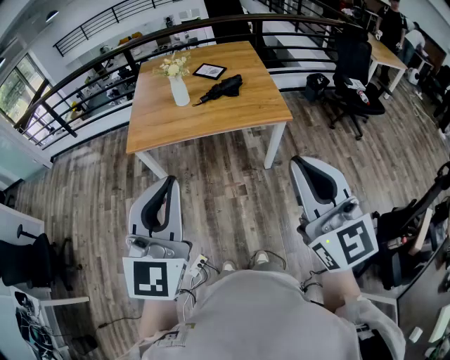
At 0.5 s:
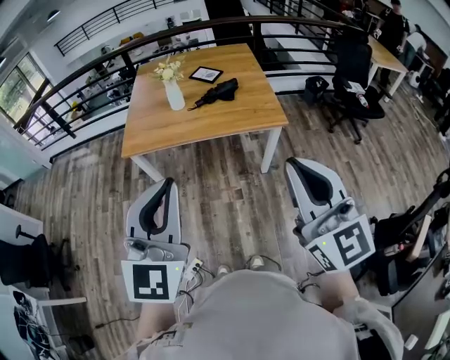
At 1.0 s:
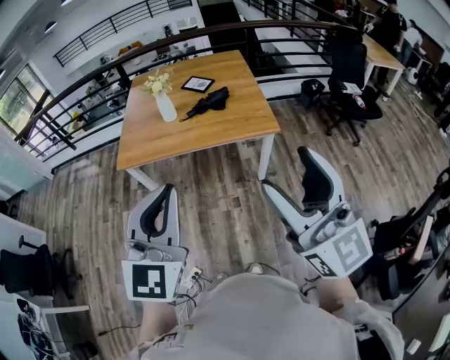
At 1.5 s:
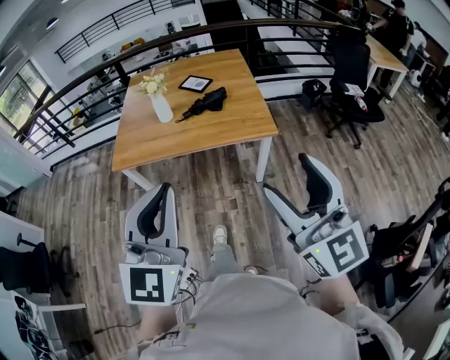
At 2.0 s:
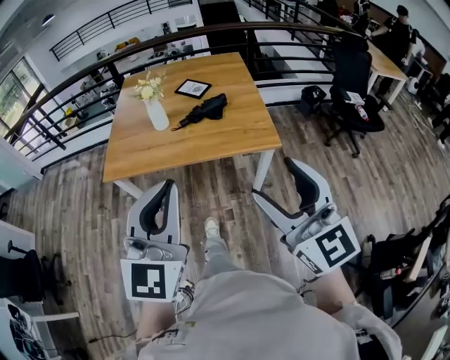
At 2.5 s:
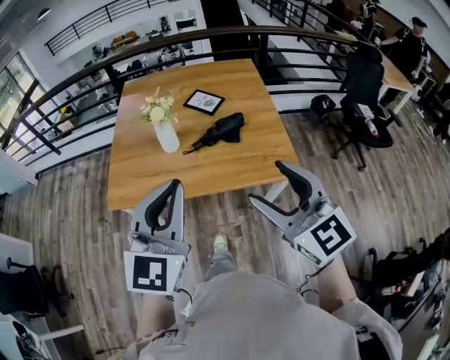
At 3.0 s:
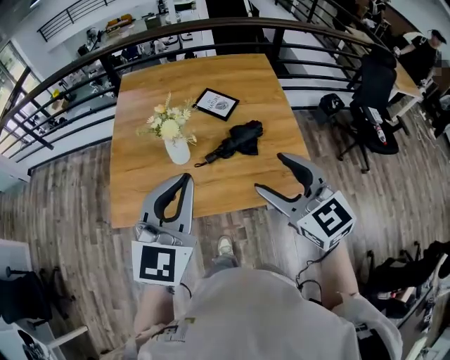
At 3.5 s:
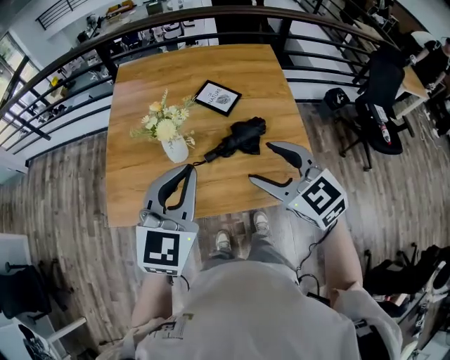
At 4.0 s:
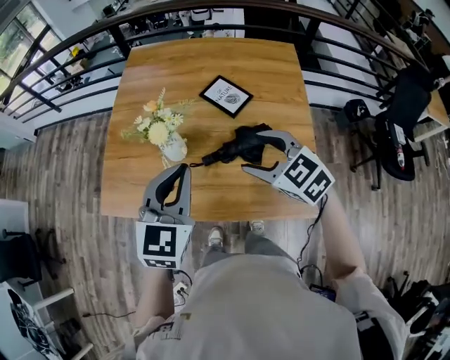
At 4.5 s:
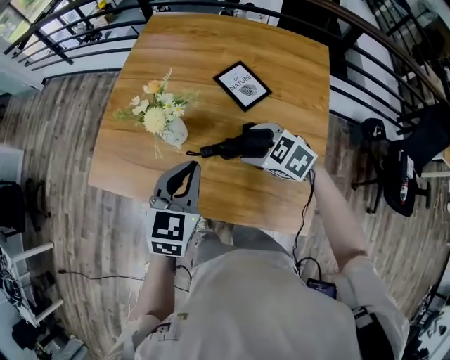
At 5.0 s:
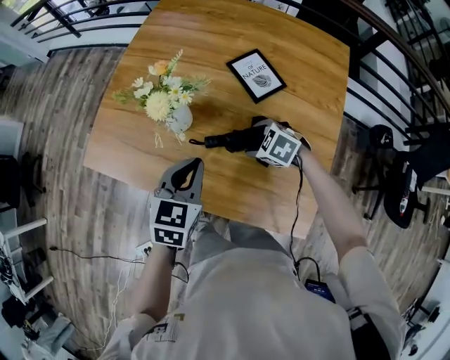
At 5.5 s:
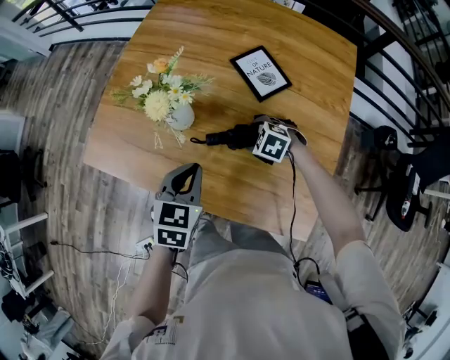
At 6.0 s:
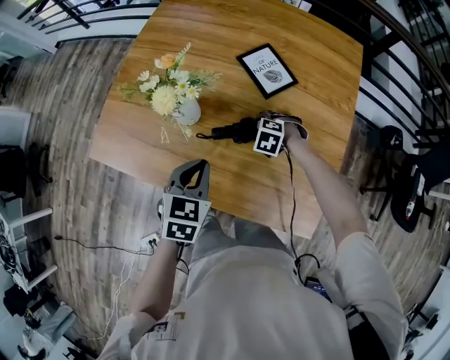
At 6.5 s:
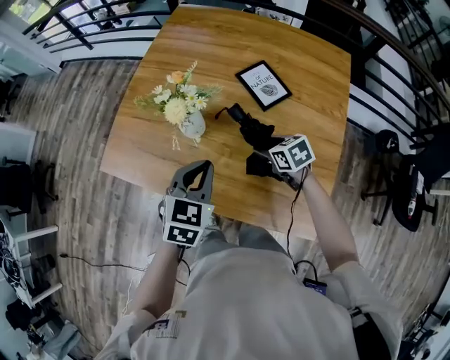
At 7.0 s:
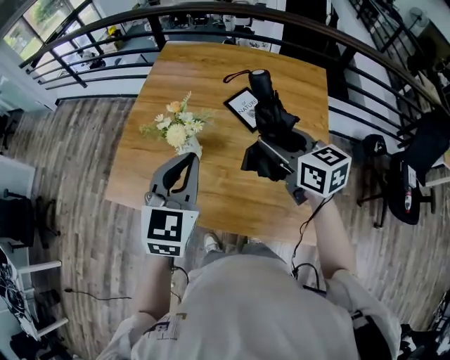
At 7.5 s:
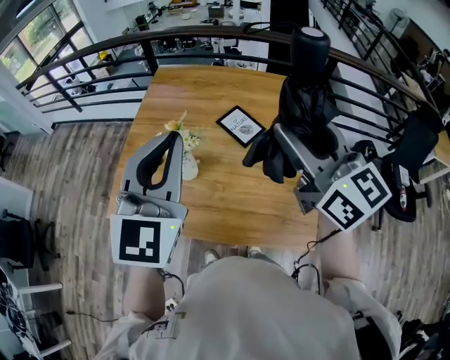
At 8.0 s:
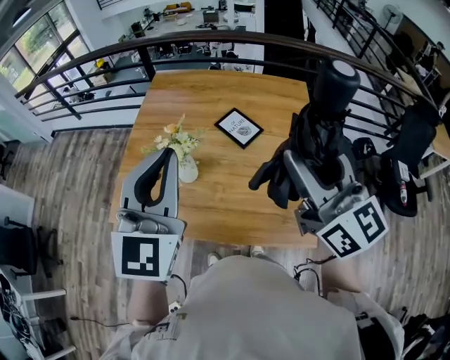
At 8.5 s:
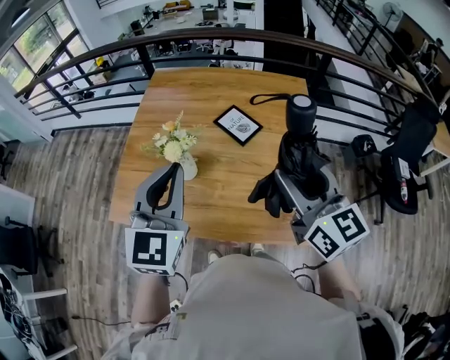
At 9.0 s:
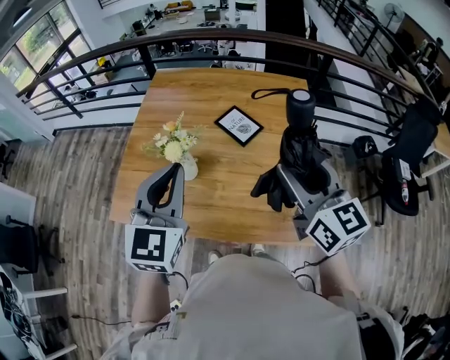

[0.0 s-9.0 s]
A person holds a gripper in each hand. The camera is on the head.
0.0 to 2.0 s: The left gripper shifts about 20 cm forward and to the right, while the right gripper moves forward, to the right and downward, approximately 20 cm, and opens up.
2.0 to 4.5 s: The two grippers travel together, roughly 60 cm. The left gripper tips its fingers downward by approximately 30 degrees; the right gripper points its fingers approximately 50 degrees further downward.
4.5 to 7.0 s: The left gripper is displaced upward by roughly 10 cm. Meanwhile the right gripper goes some 15 cm upward, and points its fingers some 30 degrees further upward.
7.0 to 9.0 s: The right gripper heads upward and backward, covering about 15 cm, and swivels some 30 degrees, while the left gripper travels upward by roughly 10 cm.

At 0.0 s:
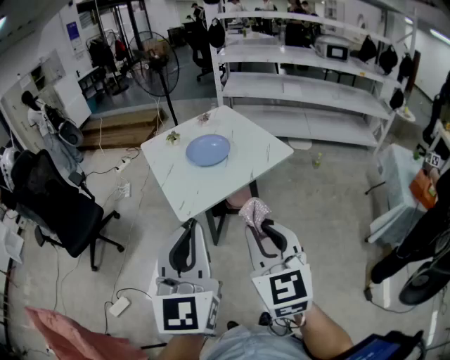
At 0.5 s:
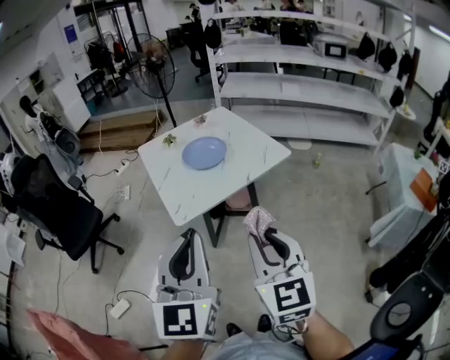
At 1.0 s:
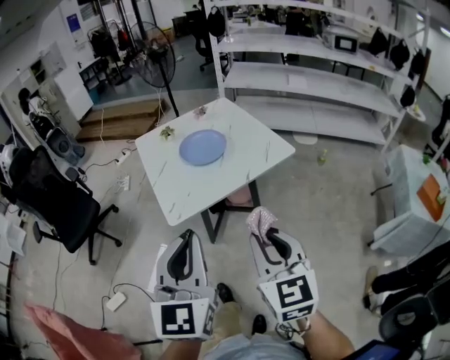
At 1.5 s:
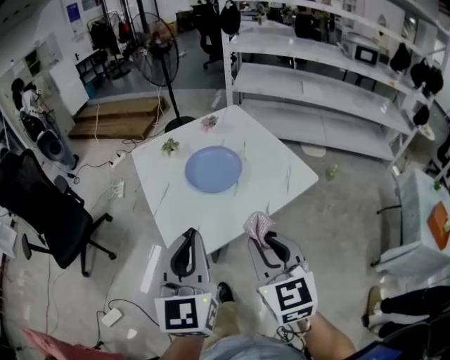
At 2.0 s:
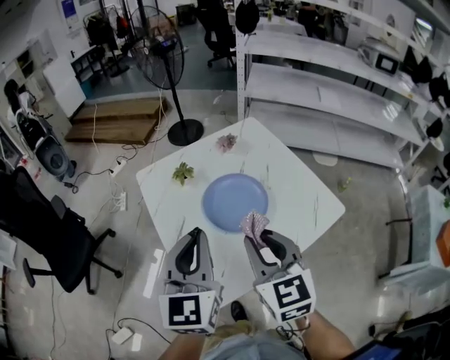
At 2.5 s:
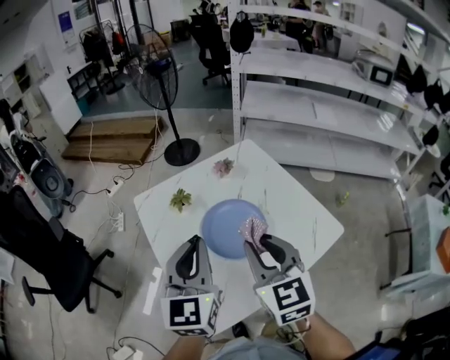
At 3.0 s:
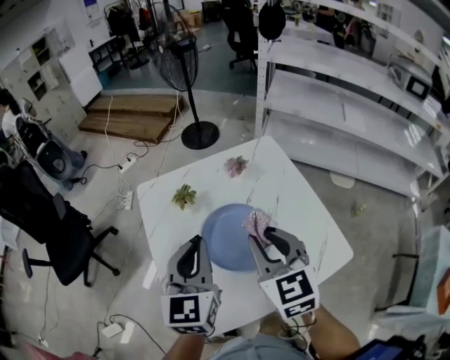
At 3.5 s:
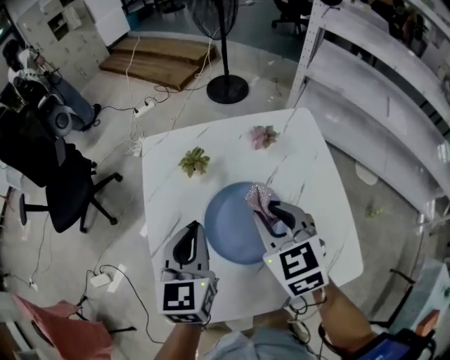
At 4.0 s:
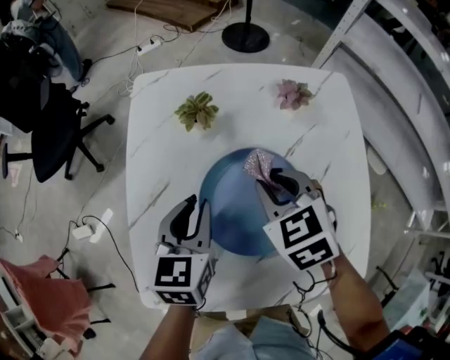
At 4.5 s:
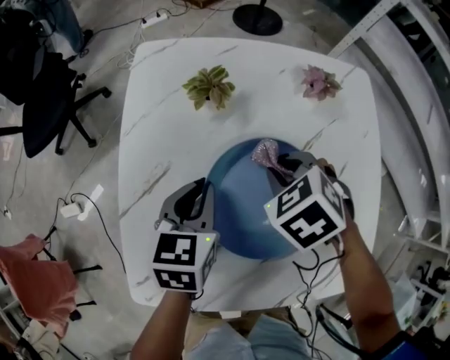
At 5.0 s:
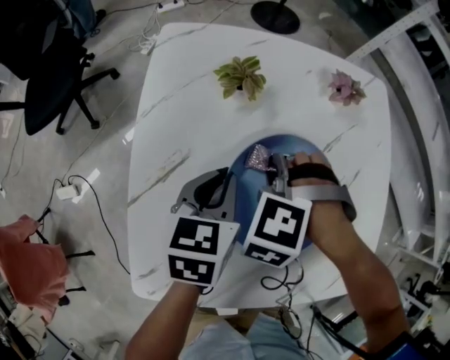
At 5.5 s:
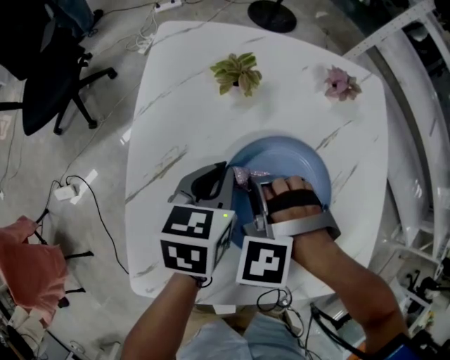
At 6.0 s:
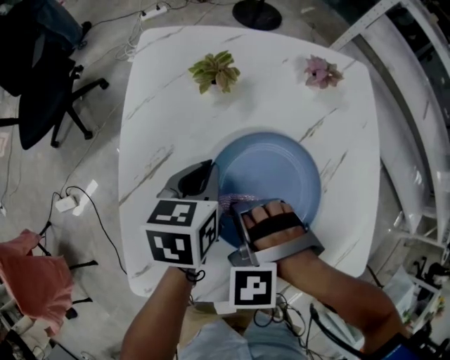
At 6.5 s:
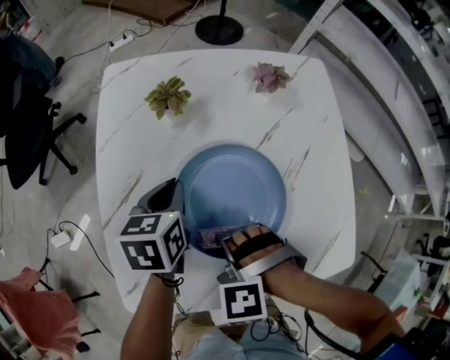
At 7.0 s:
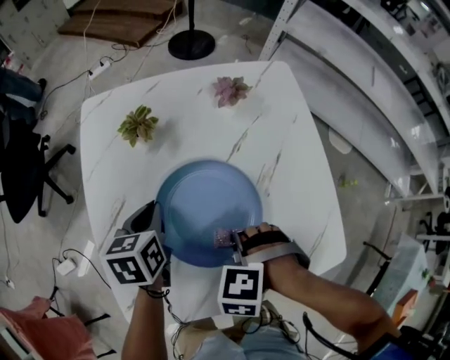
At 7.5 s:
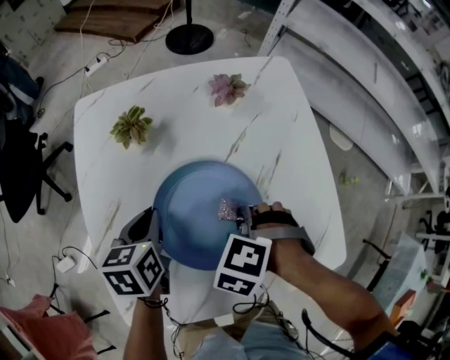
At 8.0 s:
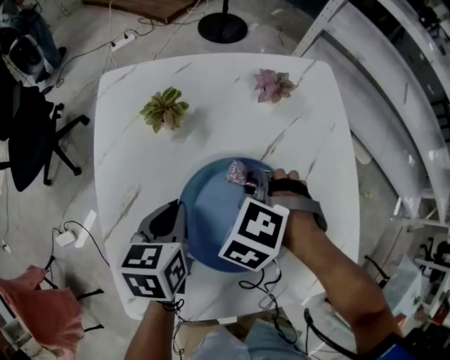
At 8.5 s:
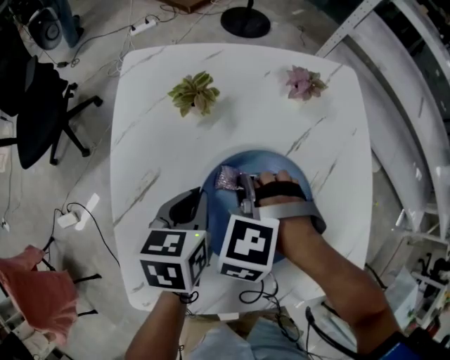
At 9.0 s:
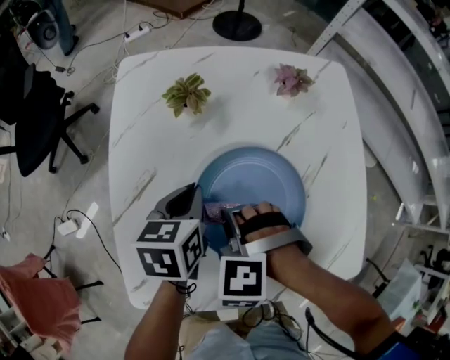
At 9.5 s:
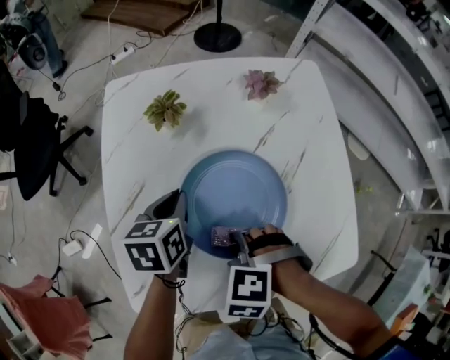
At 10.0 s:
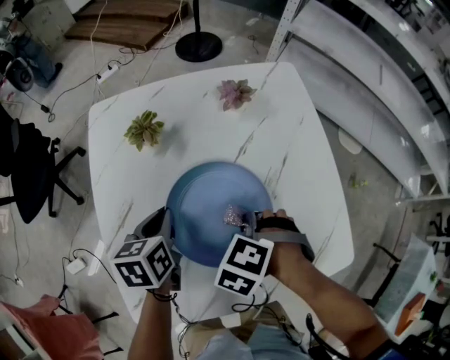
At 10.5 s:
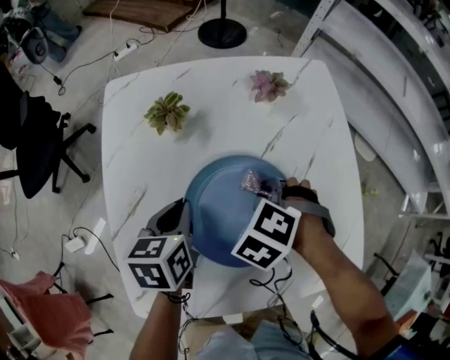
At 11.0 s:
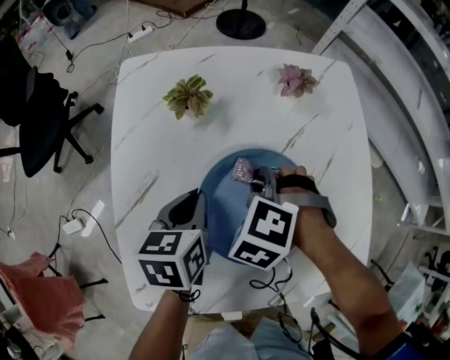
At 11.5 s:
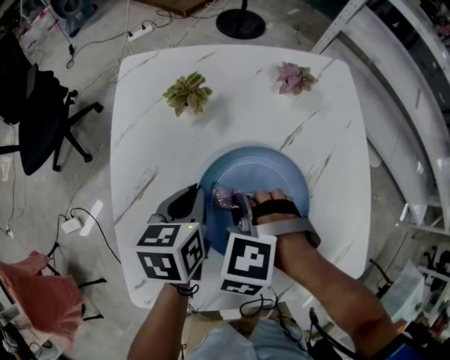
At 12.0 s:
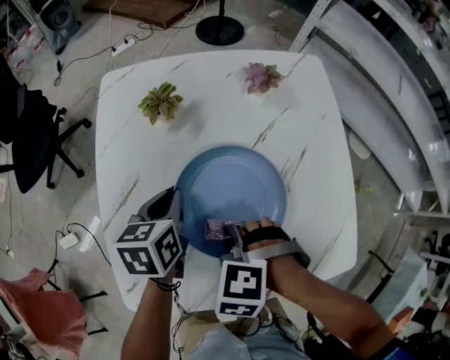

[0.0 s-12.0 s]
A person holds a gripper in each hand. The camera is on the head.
0.0 to 2.0 s: The pair of grippers is taken forward, roughly 40 cm.
2.0 to 4.0 s: The right gripper shifts by about 30 cm, and points its fingers approximately 30 degrees further downward. Meanwhile the left gripper shifts about 25 cm downward, and tilts its fingers approximately 30 degrees downward.
4.0 to 6.0 s: The right gripper shifts approximately 15 cm backward, to the left and downward, and rolls counterclockwise, seen from behind, by approximately 60 degrees, while the left gripper moves downward, about 5 cm.
6.0 to 8.0 s: The right gripper ends up some 15 cm from where it was, and changes its angle by approximately 30 degrees.
10.0 to 12.0 s: The right gripper moves about 10 cm, and changes its angle by about 20 degrees.

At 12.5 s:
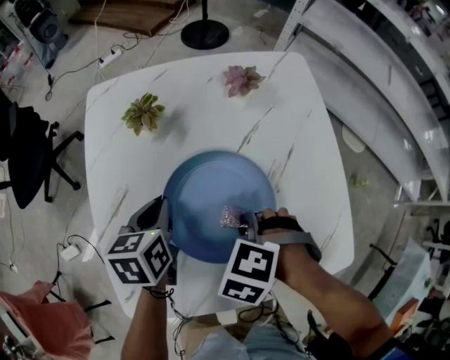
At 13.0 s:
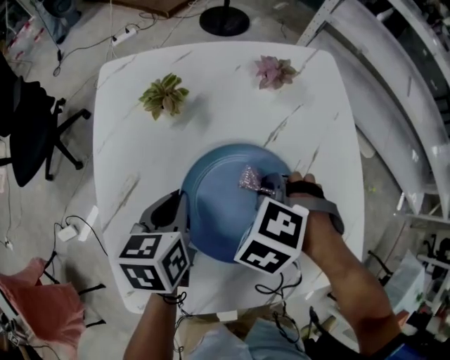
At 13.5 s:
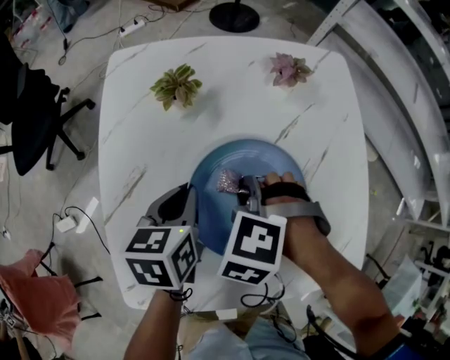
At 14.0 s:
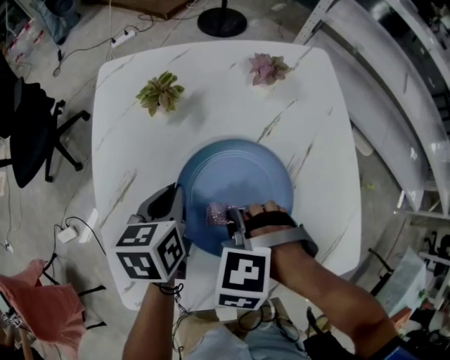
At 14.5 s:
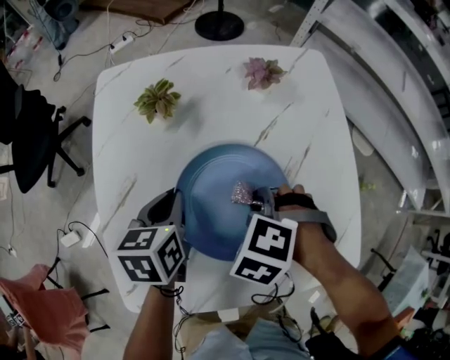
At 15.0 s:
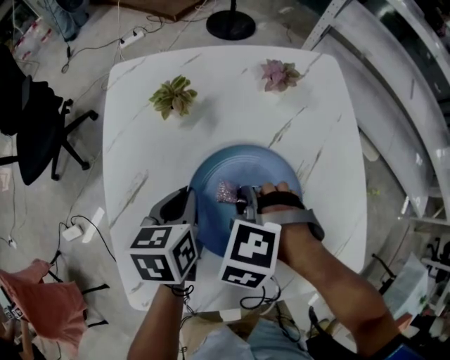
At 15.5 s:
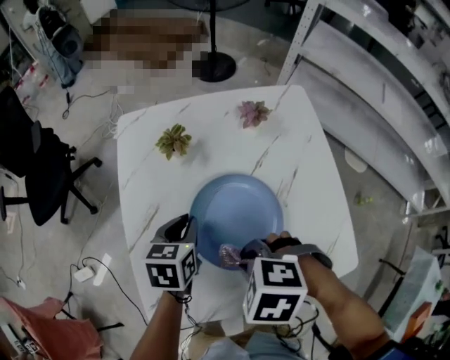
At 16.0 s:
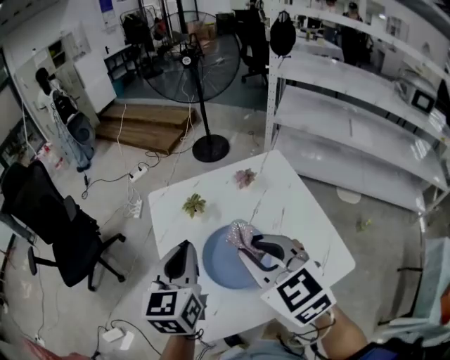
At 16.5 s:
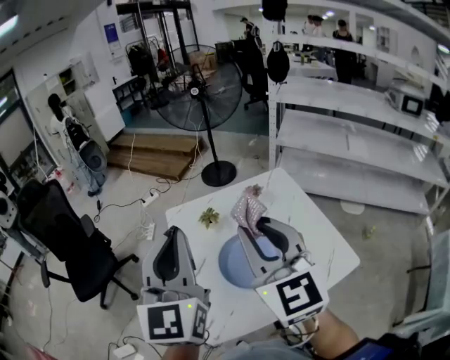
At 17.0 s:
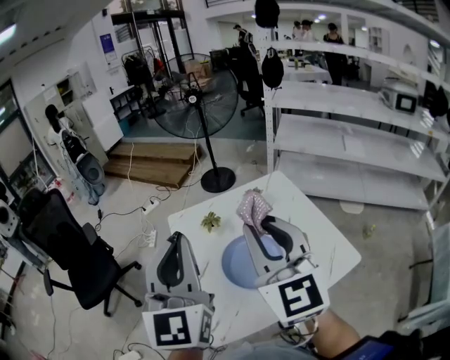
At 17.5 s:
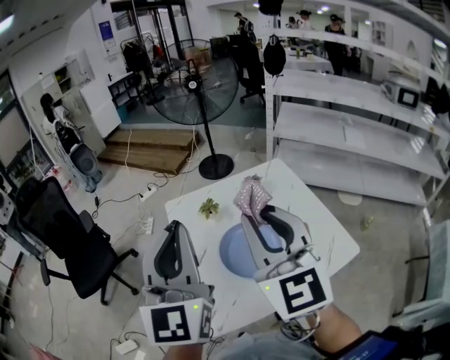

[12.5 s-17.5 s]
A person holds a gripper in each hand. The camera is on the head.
12.5 to 15.0 s: The right gripper moves about 10 cm.
15.0 to 17.5 s: Both grippers travel together upward, approximately 50 cm. The left gripper tilts its fingers about 60 degrees upward. The right gripper angles its fingers upward, by approximately 80 degrees.

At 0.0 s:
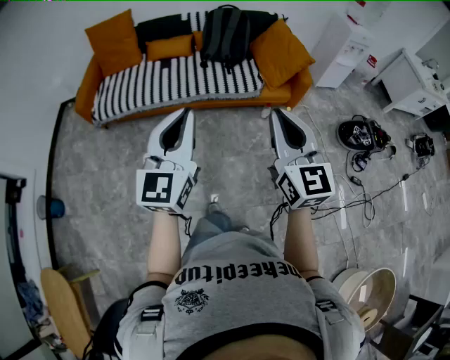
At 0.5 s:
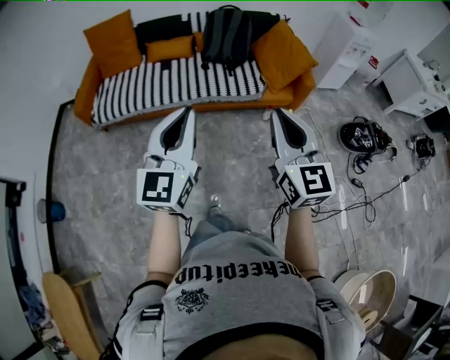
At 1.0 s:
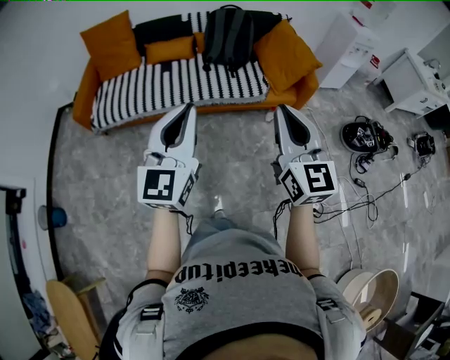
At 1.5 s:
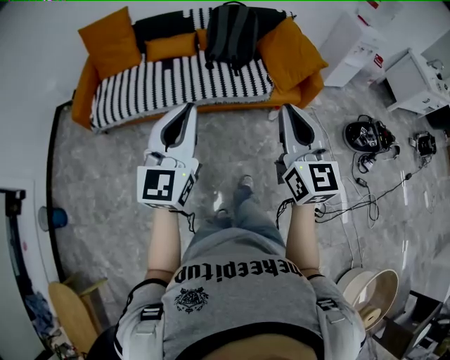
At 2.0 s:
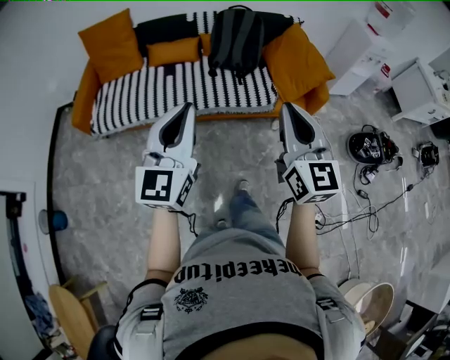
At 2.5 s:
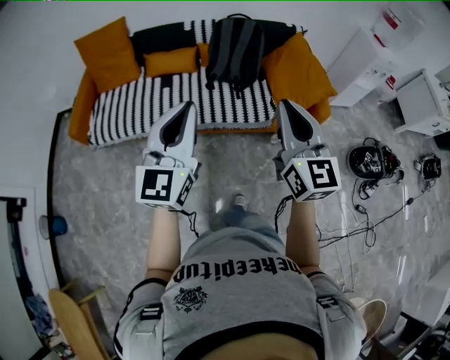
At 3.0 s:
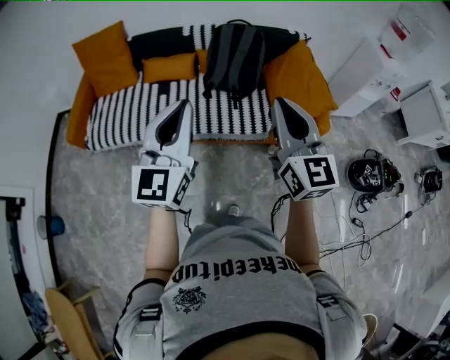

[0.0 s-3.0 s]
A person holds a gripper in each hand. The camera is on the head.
0.0 to 1.5 s: The right gripper goes approximately 10 cm forward; the left gripper goes roughly 10 cm forward and to the left.
1.5 to 3.0 s: Both grippers move forward, roughly 25 cm.
